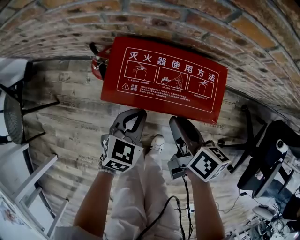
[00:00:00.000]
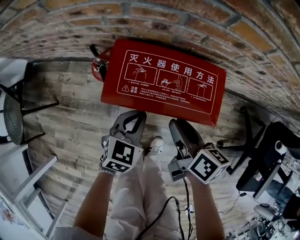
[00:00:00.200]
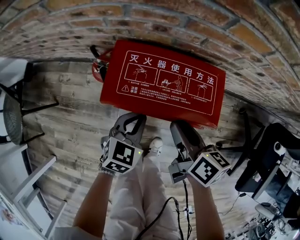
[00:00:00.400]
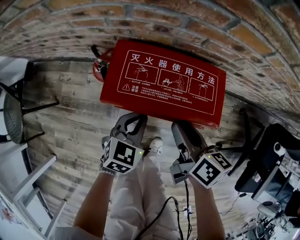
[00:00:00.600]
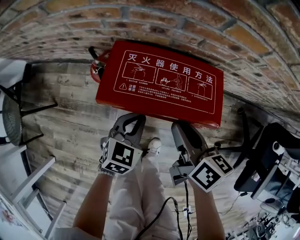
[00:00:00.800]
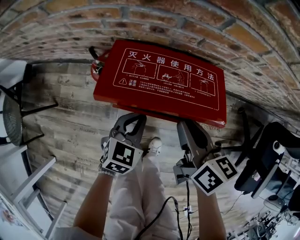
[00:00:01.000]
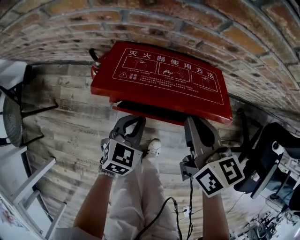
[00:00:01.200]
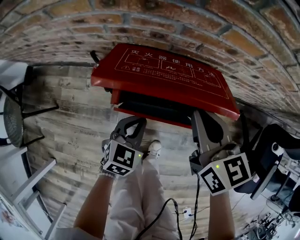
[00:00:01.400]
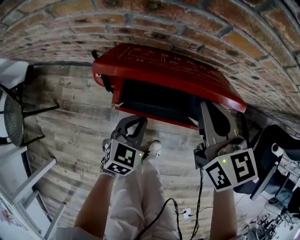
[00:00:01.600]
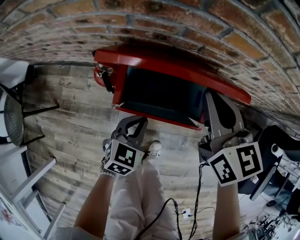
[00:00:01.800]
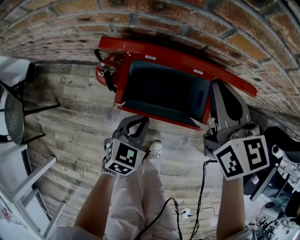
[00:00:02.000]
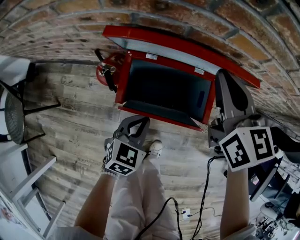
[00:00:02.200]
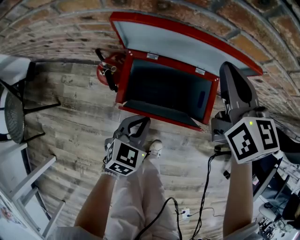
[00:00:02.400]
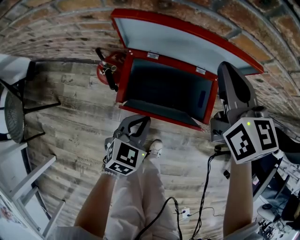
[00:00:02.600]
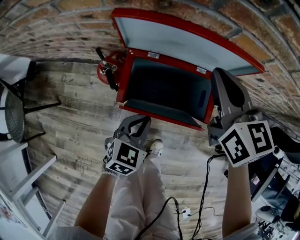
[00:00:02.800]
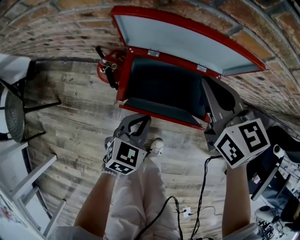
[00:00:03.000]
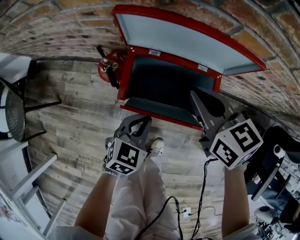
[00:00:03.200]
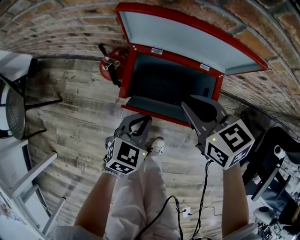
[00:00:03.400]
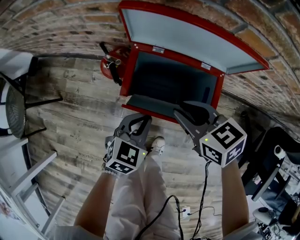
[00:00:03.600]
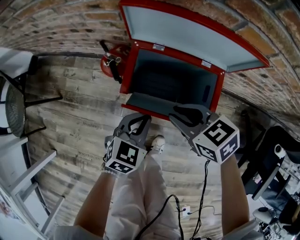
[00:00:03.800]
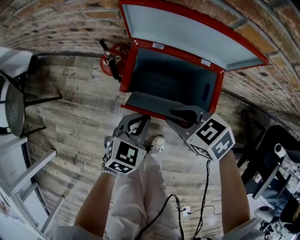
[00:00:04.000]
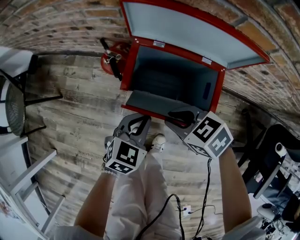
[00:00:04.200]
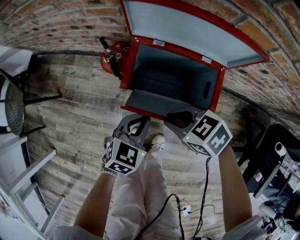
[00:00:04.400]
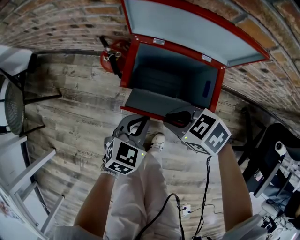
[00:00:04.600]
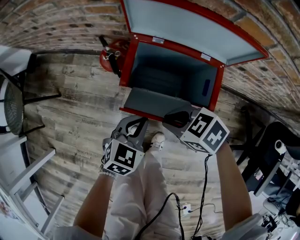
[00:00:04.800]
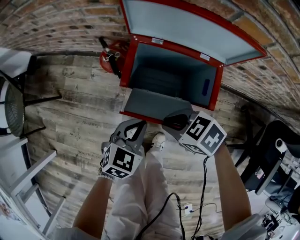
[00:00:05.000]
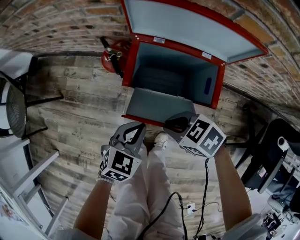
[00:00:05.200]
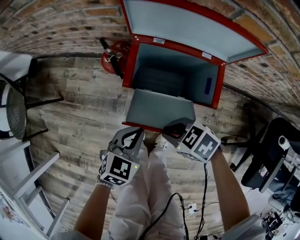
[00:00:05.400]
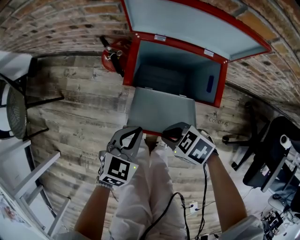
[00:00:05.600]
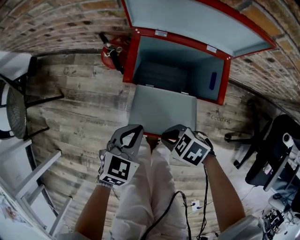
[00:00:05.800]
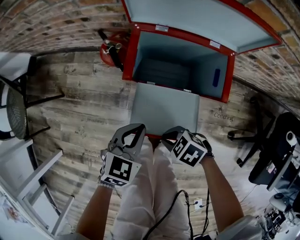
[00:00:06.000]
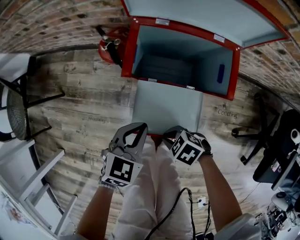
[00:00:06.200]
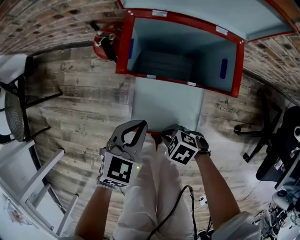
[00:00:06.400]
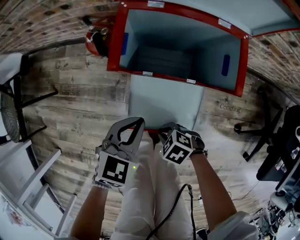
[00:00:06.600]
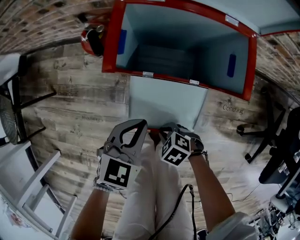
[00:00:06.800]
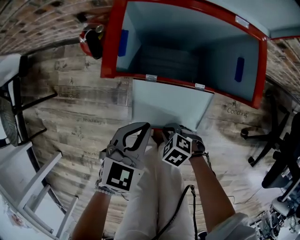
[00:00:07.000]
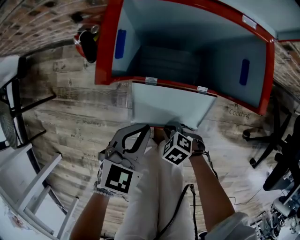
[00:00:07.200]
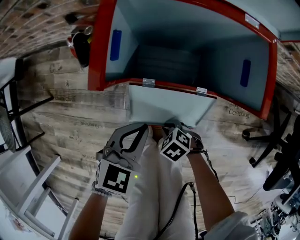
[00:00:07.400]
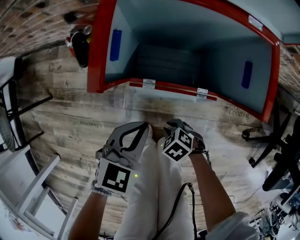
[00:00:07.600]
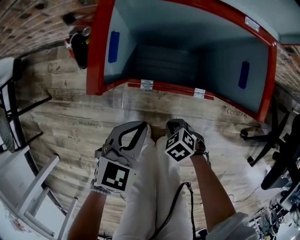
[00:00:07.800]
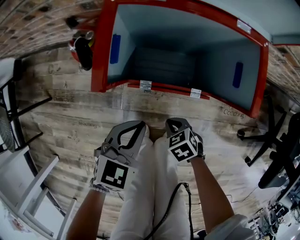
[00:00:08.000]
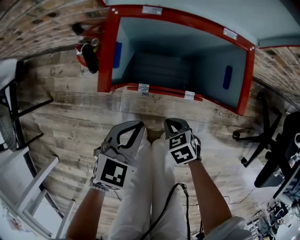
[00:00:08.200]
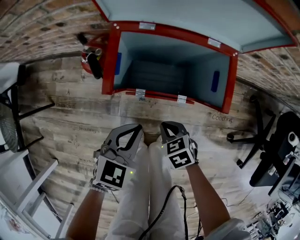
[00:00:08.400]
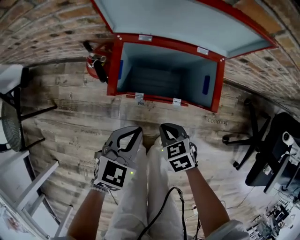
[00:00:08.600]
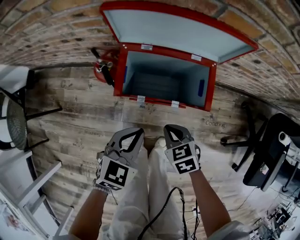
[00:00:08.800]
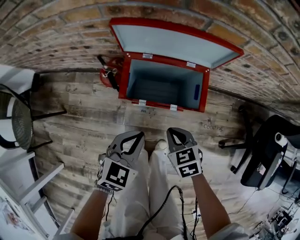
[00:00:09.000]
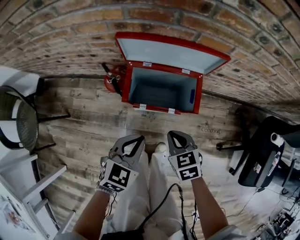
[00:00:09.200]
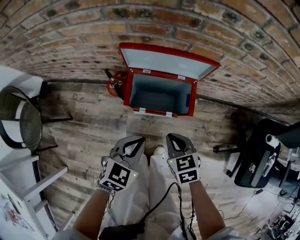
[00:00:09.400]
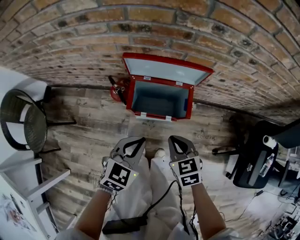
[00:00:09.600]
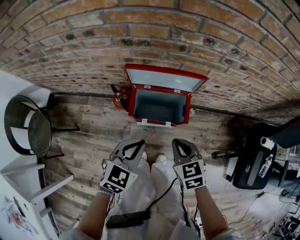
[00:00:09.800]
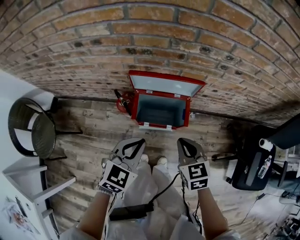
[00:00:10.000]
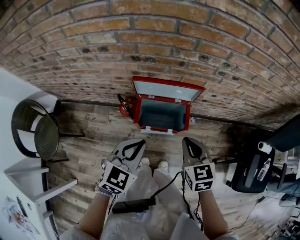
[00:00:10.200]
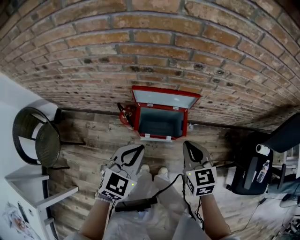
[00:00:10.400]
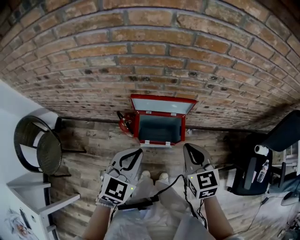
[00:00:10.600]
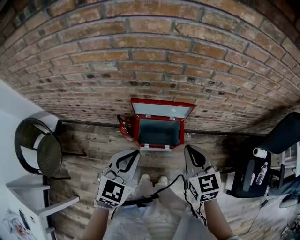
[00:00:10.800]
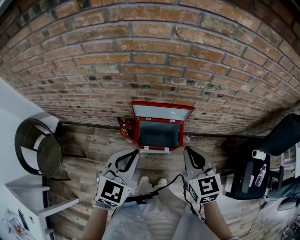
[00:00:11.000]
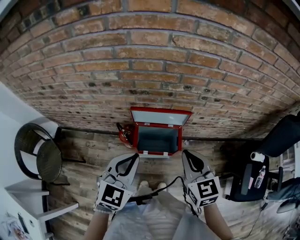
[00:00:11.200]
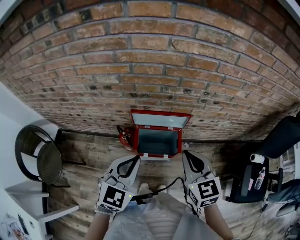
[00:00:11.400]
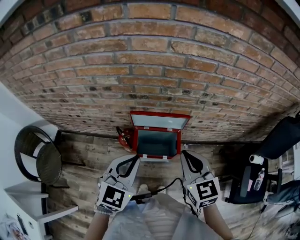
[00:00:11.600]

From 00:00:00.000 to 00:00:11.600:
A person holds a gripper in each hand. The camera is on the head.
From 00:00:00.000 to 00:00:01.400: The right gripper goes some 15 cm upward and forward, rotates approximately 40 degrees, and closes its fingers.
From 00:00:01.400 to 00:00:02.800: The right gripper travels forward by roughly 10 cm.
From 00:00:02.800 to 00:00:04.400: The right gripper moves some 25 cm, and swivels some 60 degrees.
From 00:00:04.400 to 00:00:05.800: The left gripper changes place by approximately 5 cm. The right gripper shifts by some 15 cm.
From 00:00:05.800 to 00:00:07.200: The left gripper goes some 10 cm downward, while the right gripper is displaced downward by about 25 cm.
From 00:00:07.200 to 00:00:08.800: The left gripper goes approximately 15 cm upward. Meanwhile the right gripper moves upward, about 25 cm, and changes its angle by about 40 degrees.
From 00:00:08.800 to 00:00:10.200: The grippers both shift upward by about 35 cm. The right gripper swivels some 30 degrees.
From 00:00:10.200 to 00:00:11.600: The grippers both shift upward by about 15 cm.

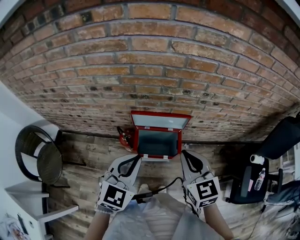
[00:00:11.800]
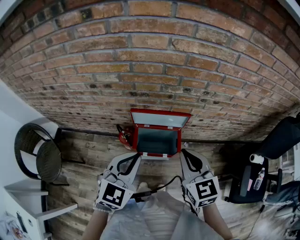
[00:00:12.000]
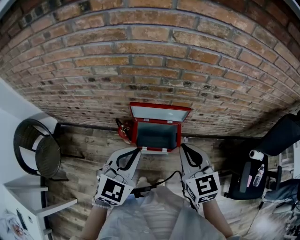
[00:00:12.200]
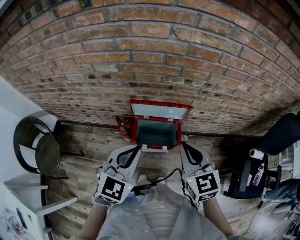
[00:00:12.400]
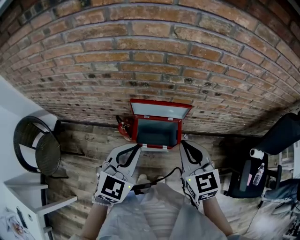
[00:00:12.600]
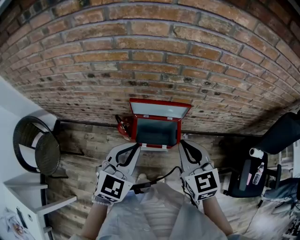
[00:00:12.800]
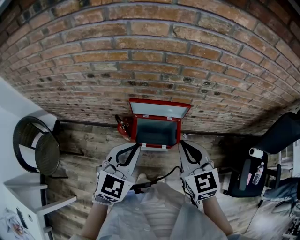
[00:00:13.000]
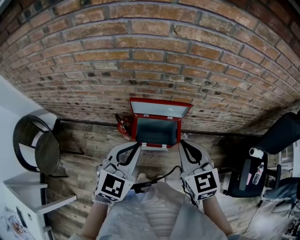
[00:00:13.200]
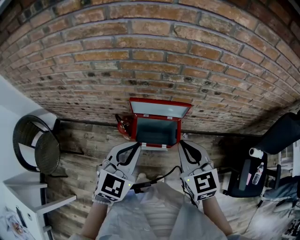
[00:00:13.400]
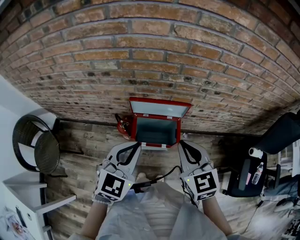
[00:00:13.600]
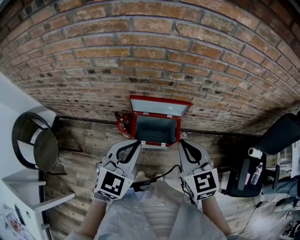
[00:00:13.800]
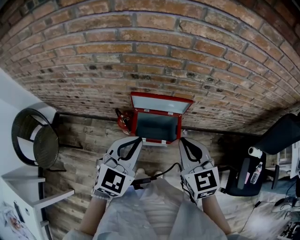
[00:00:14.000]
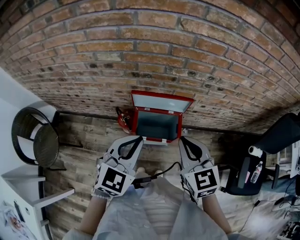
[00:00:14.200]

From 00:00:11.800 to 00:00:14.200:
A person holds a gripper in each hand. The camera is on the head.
From 00:00:11.800 to 00:00:13.000: Neither gripper changes place.
From 00:00:13.000 to 00:00:14.200: Both grippers stay about where they are.

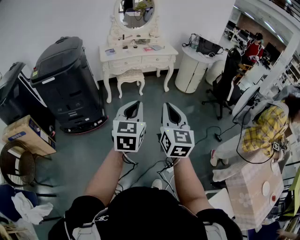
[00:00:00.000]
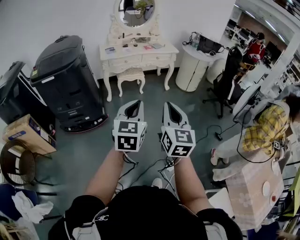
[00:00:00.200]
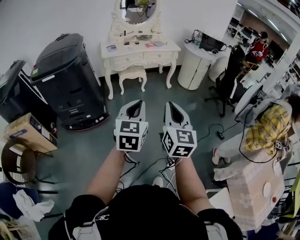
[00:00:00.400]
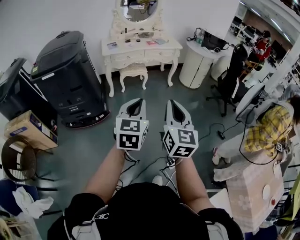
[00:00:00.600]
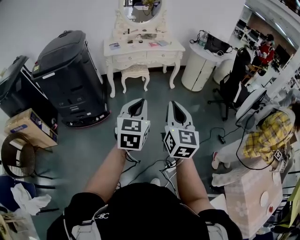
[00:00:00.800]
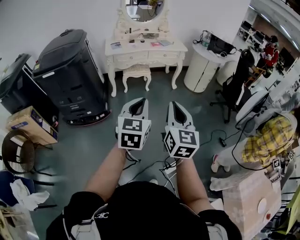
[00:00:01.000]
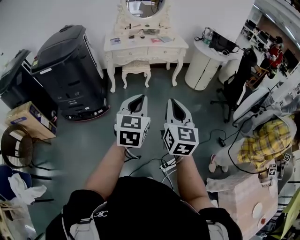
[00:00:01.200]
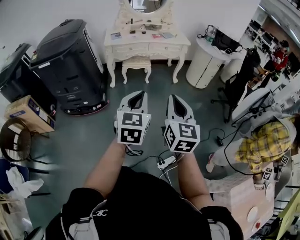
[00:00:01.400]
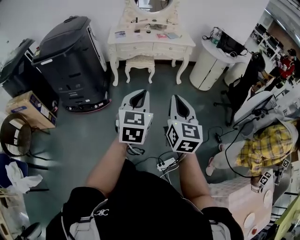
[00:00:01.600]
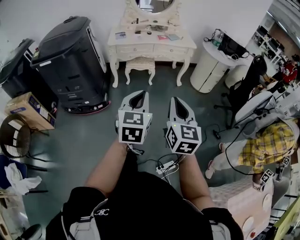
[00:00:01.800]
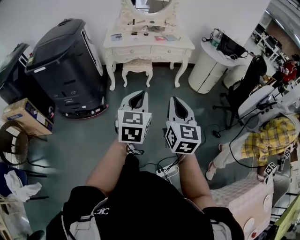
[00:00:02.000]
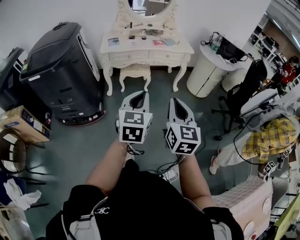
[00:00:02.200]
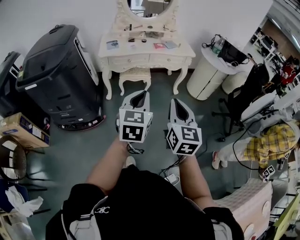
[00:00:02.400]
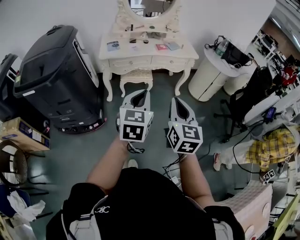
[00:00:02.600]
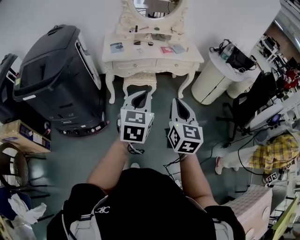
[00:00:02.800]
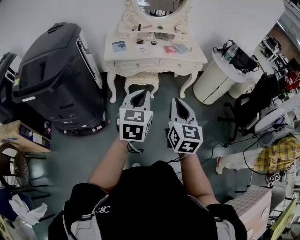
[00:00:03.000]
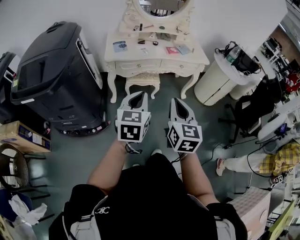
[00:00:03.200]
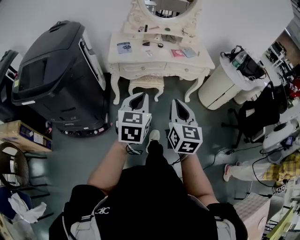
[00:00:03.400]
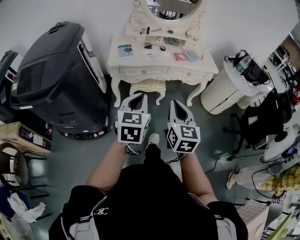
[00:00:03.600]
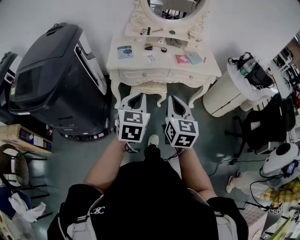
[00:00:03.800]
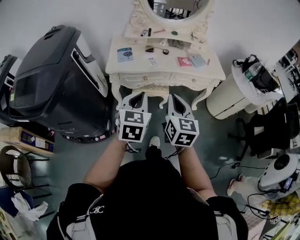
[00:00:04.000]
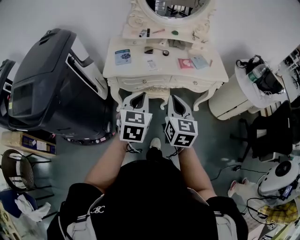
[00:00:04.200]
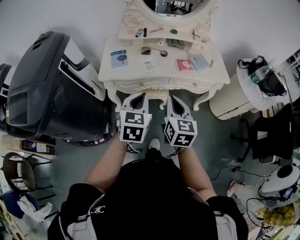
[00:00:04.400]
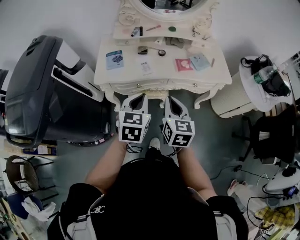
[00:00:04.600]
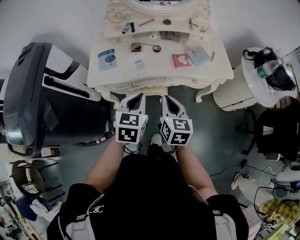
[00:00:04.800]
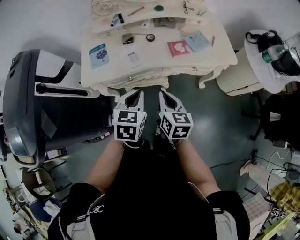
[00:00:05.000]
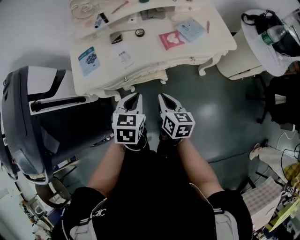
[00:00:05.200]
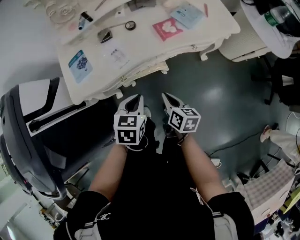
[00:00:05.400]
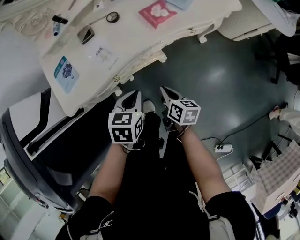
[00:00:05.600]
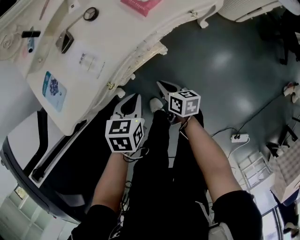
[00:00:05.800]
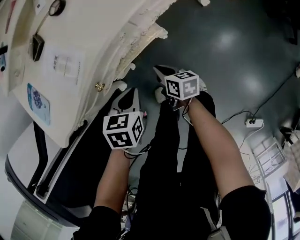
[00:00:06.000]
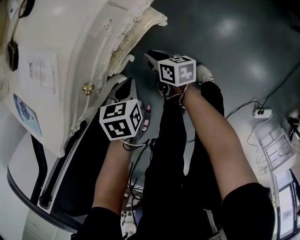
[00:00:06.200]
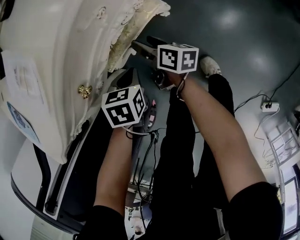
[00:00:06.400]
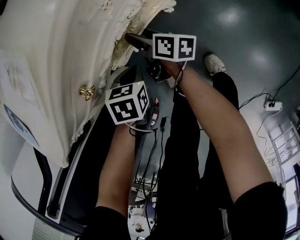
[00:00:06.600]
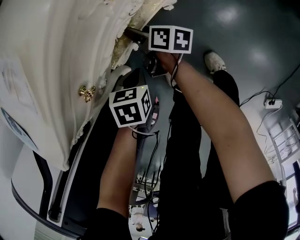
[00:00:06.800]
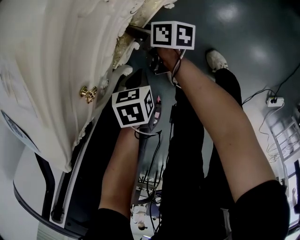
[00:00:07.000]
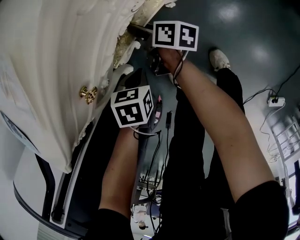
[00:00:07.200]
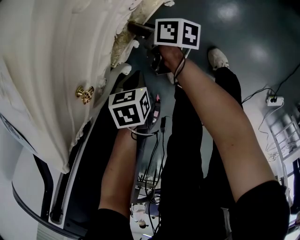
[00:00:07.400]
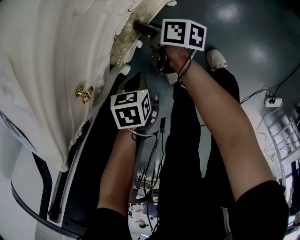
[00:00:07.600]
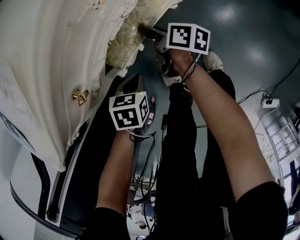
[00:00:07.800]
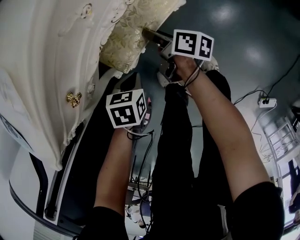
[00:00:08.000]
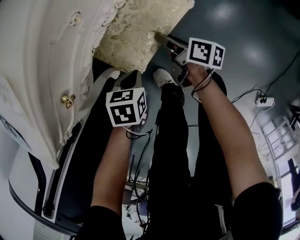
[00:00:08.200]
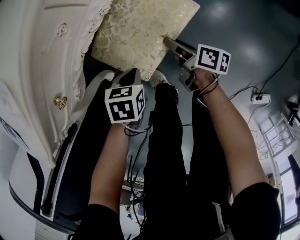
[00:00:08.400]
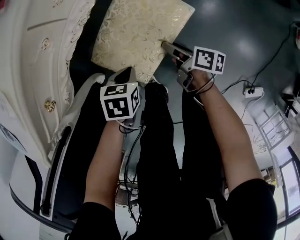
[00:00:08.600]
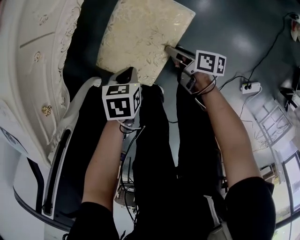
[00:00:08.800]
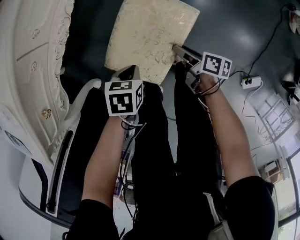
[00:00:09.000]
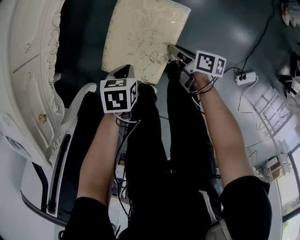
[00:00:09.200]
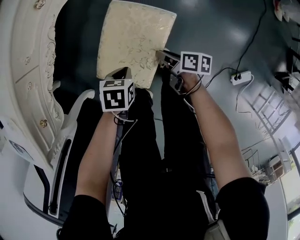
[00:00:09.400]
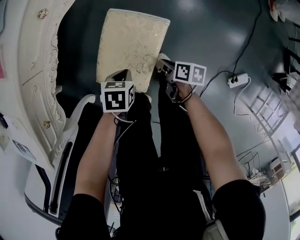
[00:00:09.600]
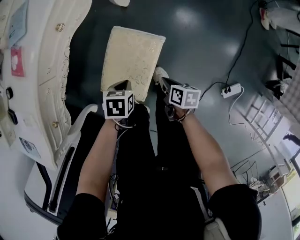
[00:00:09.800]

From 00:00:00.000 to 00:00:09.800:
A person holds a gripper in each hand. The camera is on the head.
From 00:00:00.000 to 00:00:01.400: The grippers both shift to the right and forward by approximately 15 cm.
From 00:00:01.400 to 00:00:02.800: The two grippers go approximately 30 cm forward.
From 00:00:02.800 to 00:00:04.200: Both grippers move forward, some 30 cm.
From 00:00:04.200 to 00:00:05.600: Both grippers move downward and forward, roughly 35 cm. The left gripper rotates roughly 40 degrees; the right gripper twists about 50 degrees clockwise, seen from behind.
From 00:00:05.600 to 00:00:07.000: The two grippers go some 30 cm downward. The left gripper rotates roughly 20 degrees. The right gripper rotates roughly 30 degrees, and opens.
From 00:00:07.000 to 00:00:08.400: The right gripper shifts by about 25 cm. The left gripper changes place by roughly 10 cm.
From 00:00:08.400 to 00:00:09.800: The two grippers go approximately 25 cm to the right. The right gripper turns by approximately 20 degrees, and closes.
